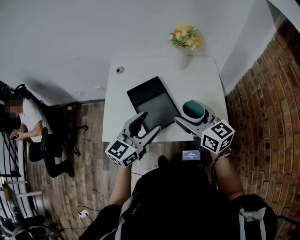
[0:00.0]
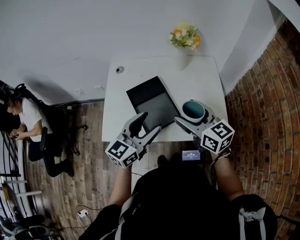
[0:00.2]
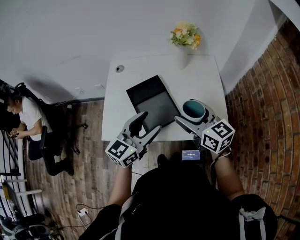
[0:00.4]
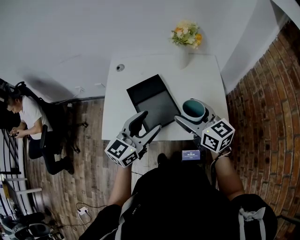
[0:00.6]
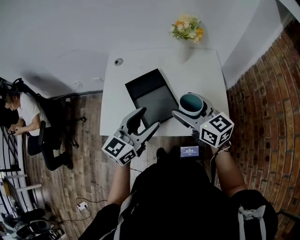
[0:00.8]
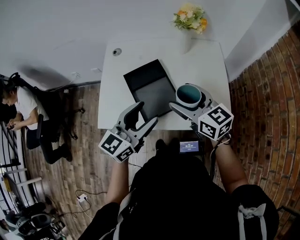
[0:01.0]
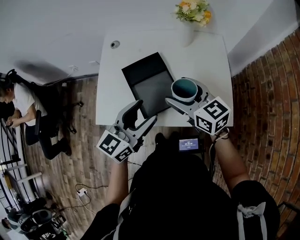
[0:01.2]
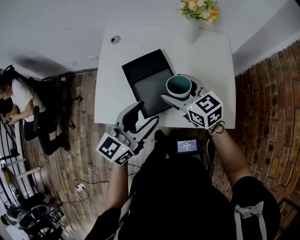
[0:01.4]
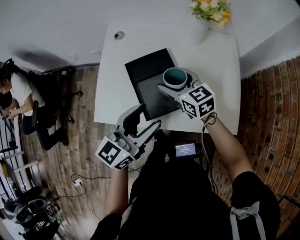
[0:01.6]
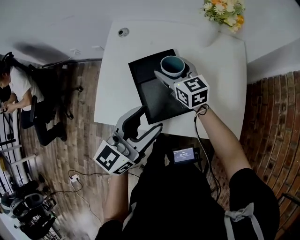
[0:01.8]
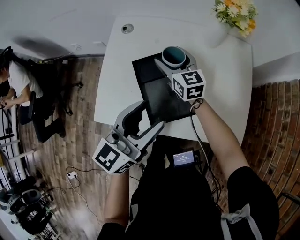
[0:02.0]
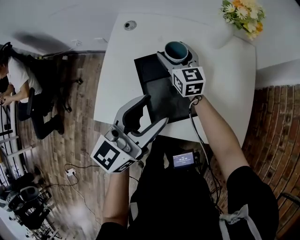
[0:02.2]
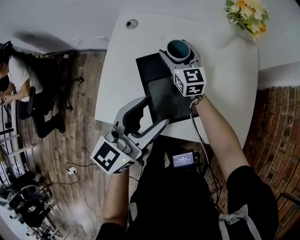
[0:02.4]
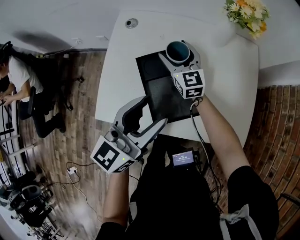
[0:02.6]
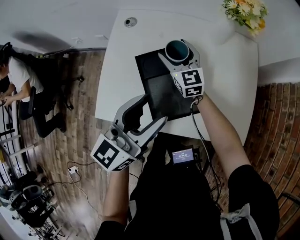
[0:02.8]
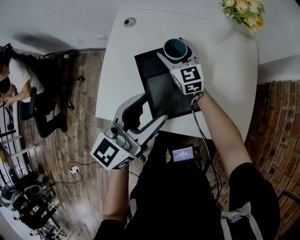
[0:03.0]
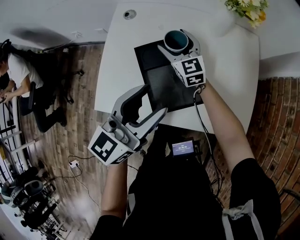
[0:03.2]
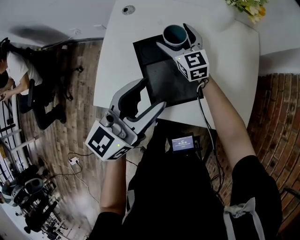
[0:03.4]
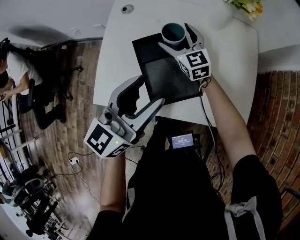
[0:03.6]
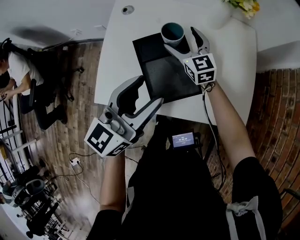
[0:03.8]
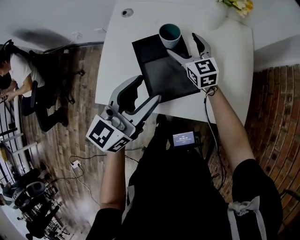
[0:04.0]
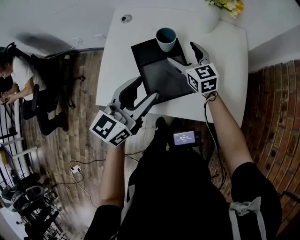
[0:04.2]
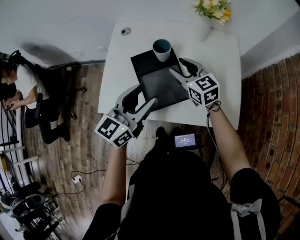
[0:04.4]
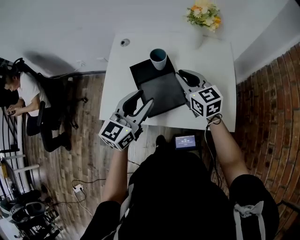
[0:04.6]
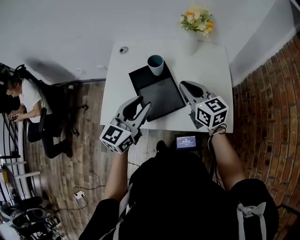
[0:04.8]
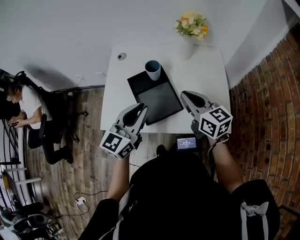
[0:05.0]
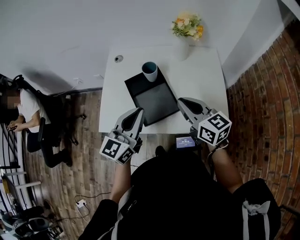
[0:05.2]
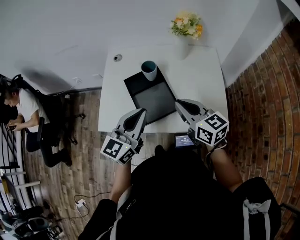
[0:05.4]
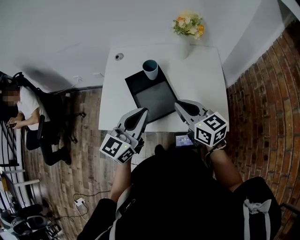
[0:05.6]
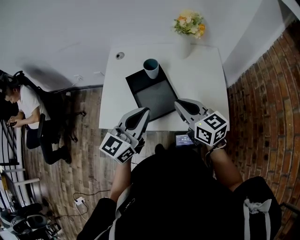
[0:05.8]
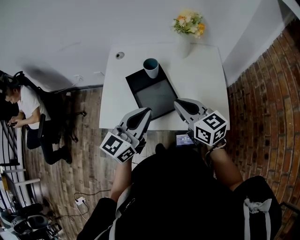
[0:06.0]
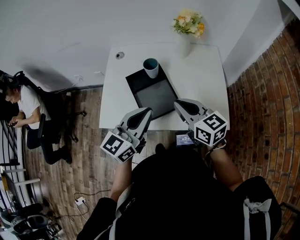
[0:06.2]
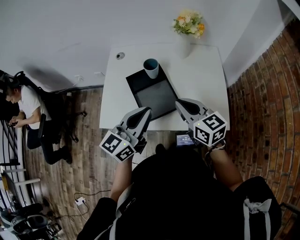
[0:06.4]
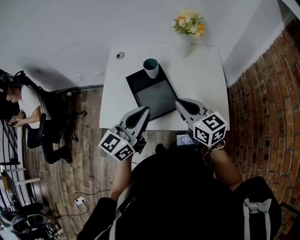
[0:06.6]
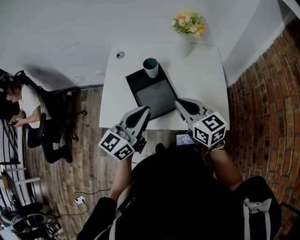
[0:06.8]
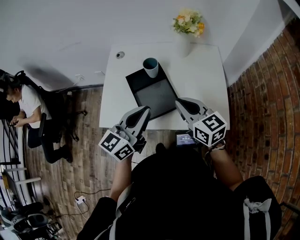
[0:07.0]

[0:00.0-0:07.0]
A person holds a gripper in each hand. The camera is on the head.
0:00.0 to 0:01.4: The right gripper goes some 15 cm downward, forward and to the left.
0:01.4 to 0:02.8: The right gripper moves forward, downward and to the left, some 20 cm, and rotates some 20 degrees. Meanwhile the left gripper moves forward, approximately 5 cm.
0:02.8 to 0:04.2: The right gripper shifts approximately 10 cm backward and to the right.
0:04.2 to 0:05.6: The left gripper is displaced backward by about 5 cm, and closes its fingers, while the right gripper moves backward and upward, about 20 cm, and closes up.
0:05.6 to 0:07.0: The grippers stay close to where they were, moving slightly.

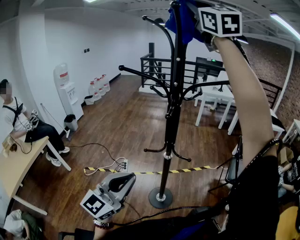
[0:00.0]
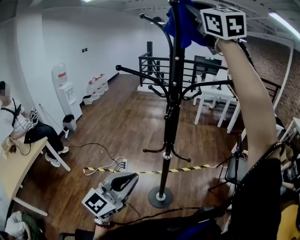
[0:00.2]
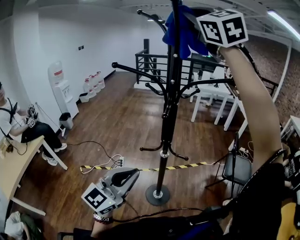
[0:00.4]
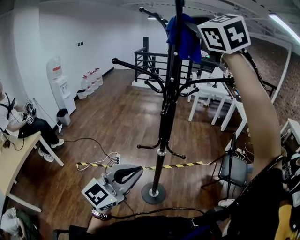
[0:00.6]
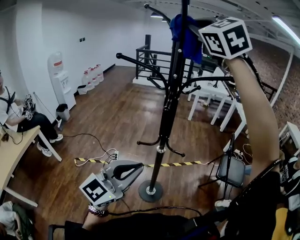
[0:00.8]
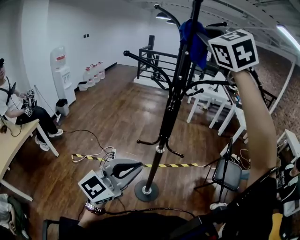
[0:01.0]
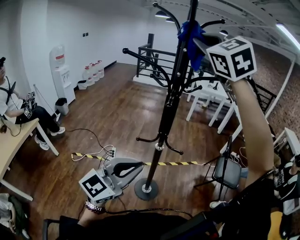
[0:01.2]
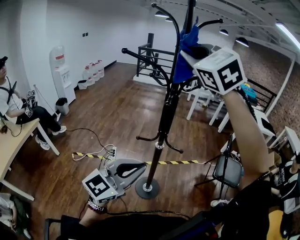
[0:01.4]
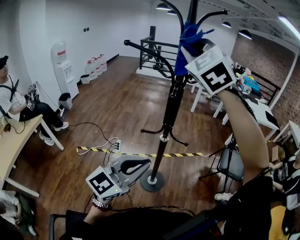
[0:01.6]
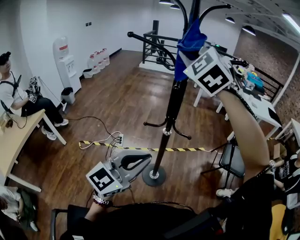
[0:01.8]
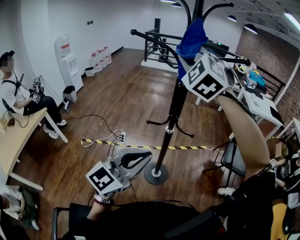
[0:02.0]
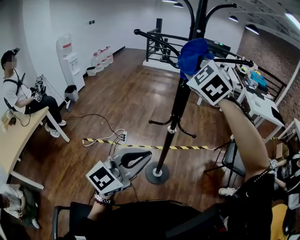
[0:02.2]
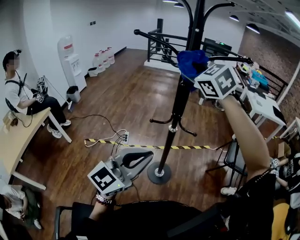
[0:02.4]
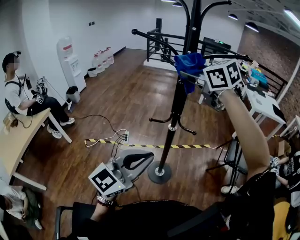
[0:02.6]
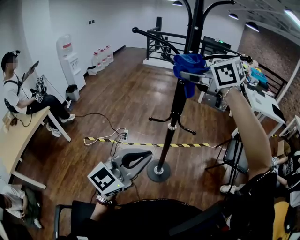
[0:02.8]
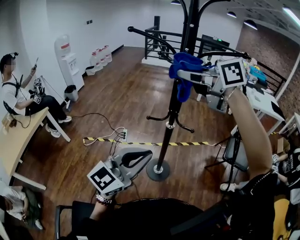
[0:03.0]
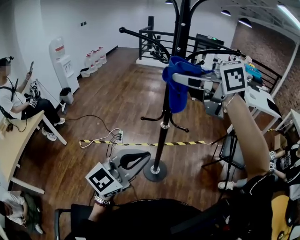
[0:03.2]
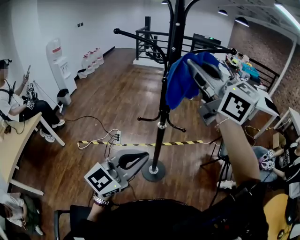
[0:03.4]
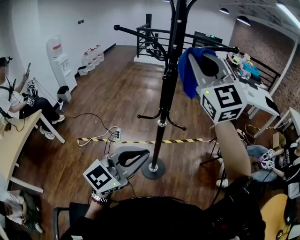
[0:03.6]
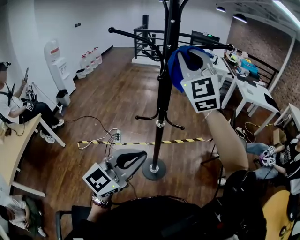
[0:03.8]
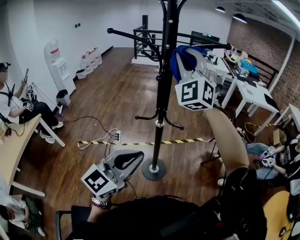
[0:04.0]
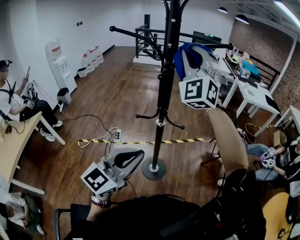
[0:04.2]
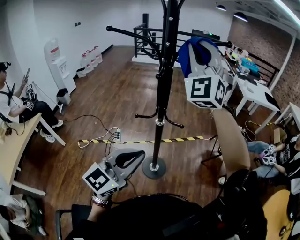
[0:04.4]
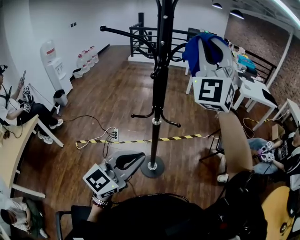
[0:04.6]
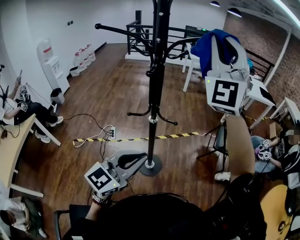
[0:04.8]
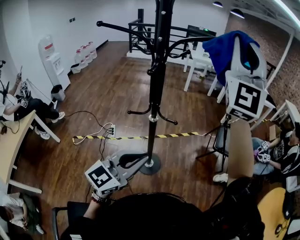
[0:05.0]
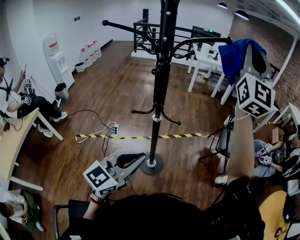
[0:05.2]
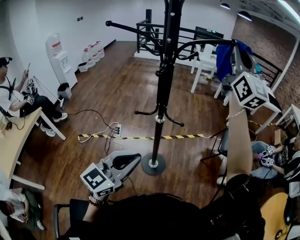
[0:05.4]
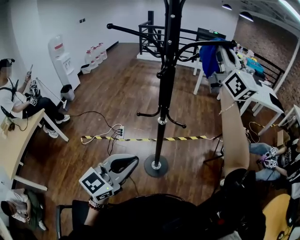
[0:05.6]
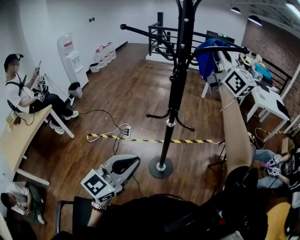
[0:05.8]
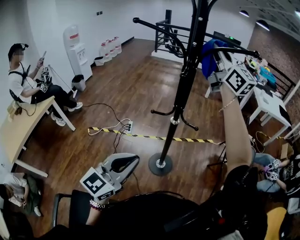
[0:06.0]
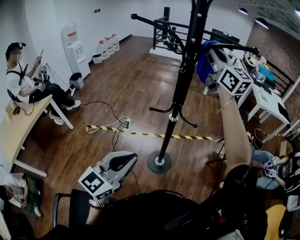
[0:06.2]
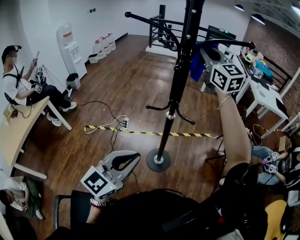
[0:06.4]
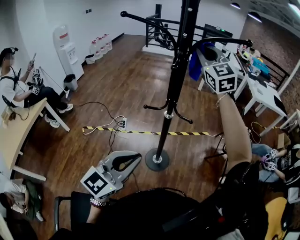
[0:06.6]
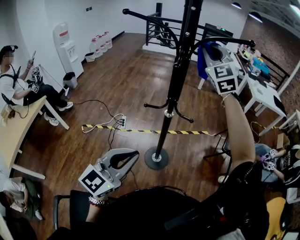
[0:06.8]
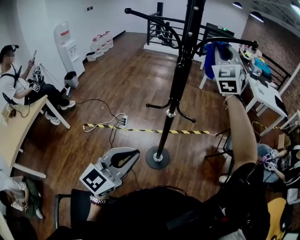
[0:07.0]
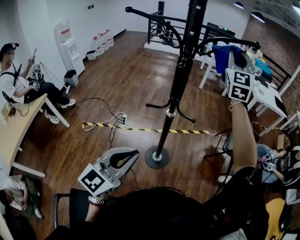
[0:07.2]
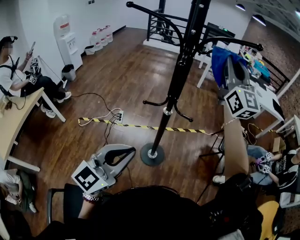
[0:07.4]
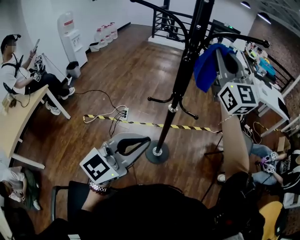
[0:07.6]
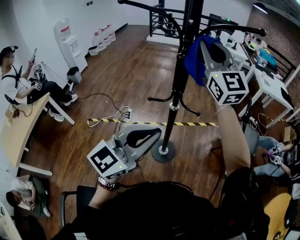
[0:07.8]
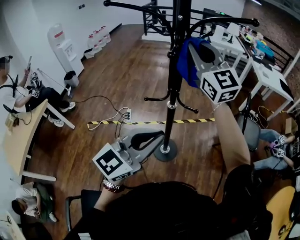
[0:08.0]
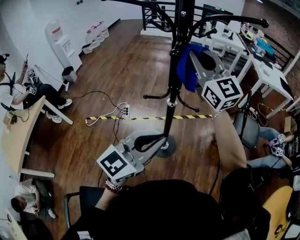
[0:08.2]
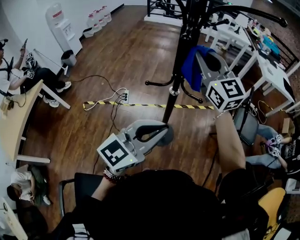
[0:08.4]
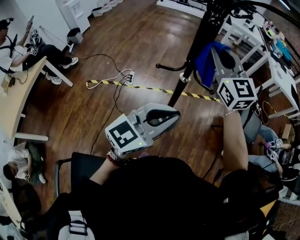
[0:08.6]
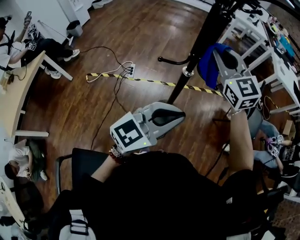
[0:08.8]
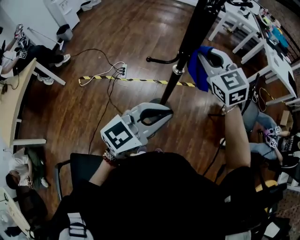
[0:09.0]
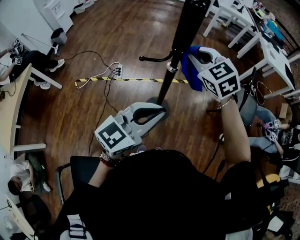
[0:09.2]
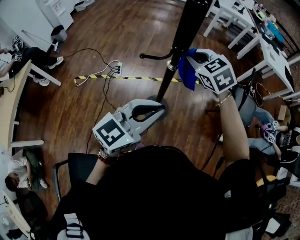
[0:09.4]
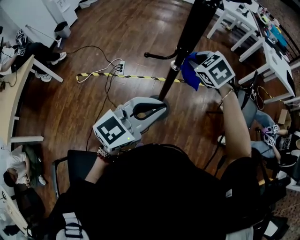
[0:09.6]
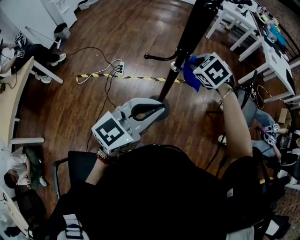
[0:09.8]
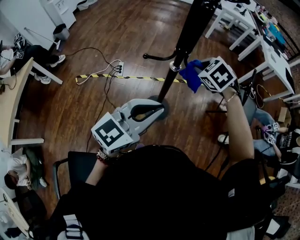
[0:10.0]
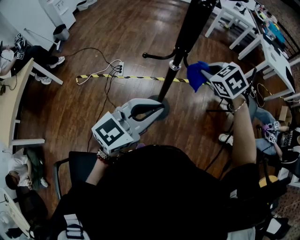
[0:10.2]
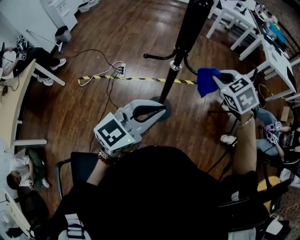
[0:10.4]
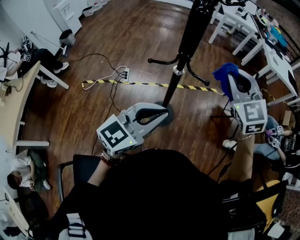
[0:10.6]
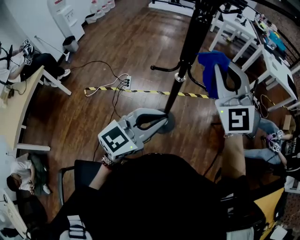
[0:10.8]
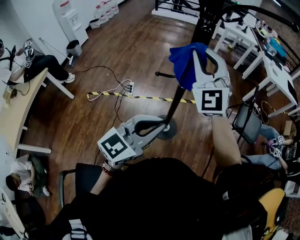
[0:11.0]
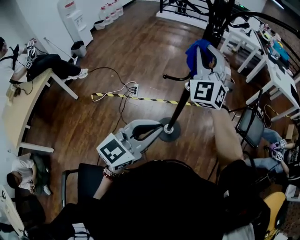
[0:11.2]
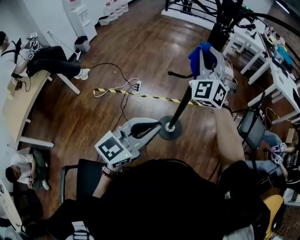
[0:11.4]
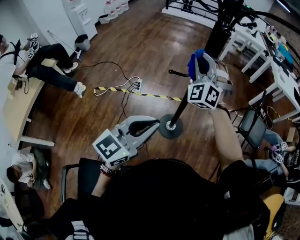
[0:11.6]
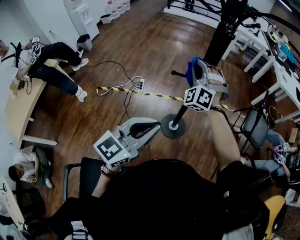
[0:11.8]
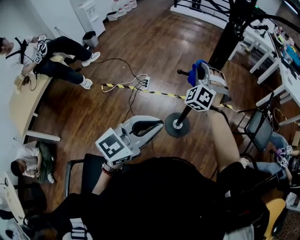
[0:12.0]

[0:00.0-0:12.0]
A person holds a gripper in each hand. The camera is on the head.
0:00.0 to 0:01.6: The right gripper goes roughly 25 cm downward, and changes its angle by some 40 degrees, while the left gripper is displaced to the right by about 5 cm.
0:01.6 to 0:03.0: The right gripper shifts some 10 cm downward, and rotates about 80 degrees.
0:03.0 to 0:04.4: The right gripper changes place by approximately 15 cm, and tips its fingers upward by roughly 40 degrees.
0:04.4 to 0:06.0: The right gripper twists approximately 70 degrees clockwise, seen from behind. The left gripper shifts by approximately 5 cm.
0:06.0 to 0:07.6: The left gripper changes place by about 5 cm. The right gripper moves backward and downward, roughly 10 cm, travels to the right and back again, roughly 10 cm each way, and turns by approximately 20 degrees.
0:07.6 to 0:09.0: The right gripper moves downward, about 25 cm, and tilts its fingers approximately 40 degrees downward, while the left gripper goes some 10 cm downward and forward.
0:09.0 to 0:10.4: The right gripper shifts approximately 15 cm to the right and downward, and points its fingers about 30 degrees further downward.
0:10.4 to 0:12.0: The left gripper heads to the left and backward, covering roughly 10 cm; the right gripper goes some 20 cm to the left, and tilts its fingers about 40 degrees upward.

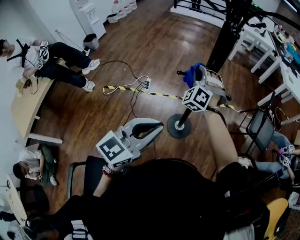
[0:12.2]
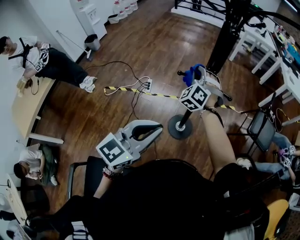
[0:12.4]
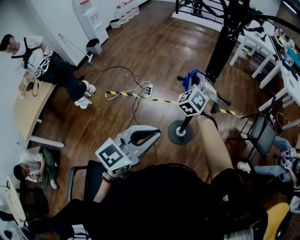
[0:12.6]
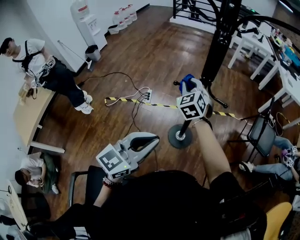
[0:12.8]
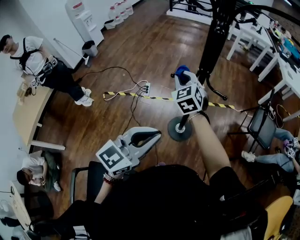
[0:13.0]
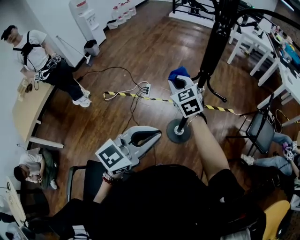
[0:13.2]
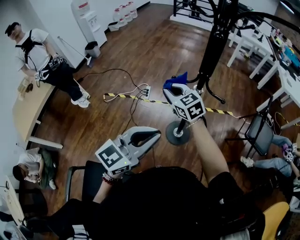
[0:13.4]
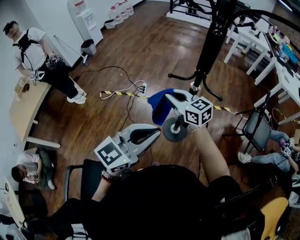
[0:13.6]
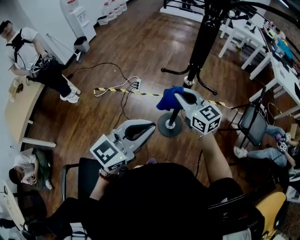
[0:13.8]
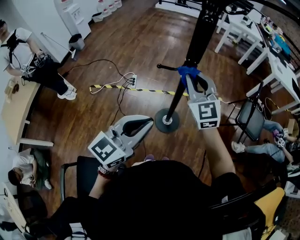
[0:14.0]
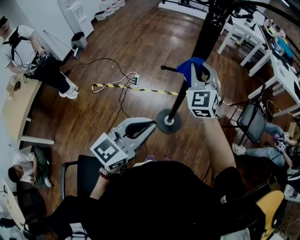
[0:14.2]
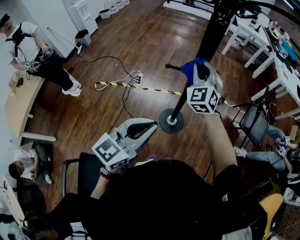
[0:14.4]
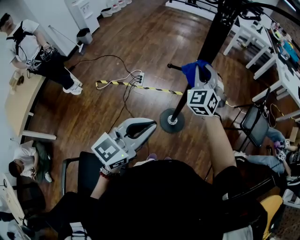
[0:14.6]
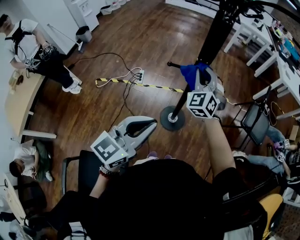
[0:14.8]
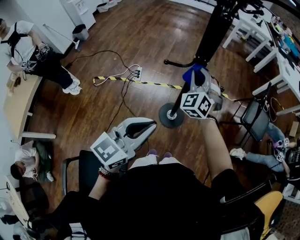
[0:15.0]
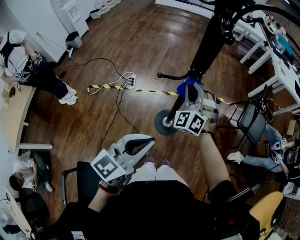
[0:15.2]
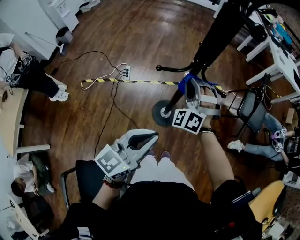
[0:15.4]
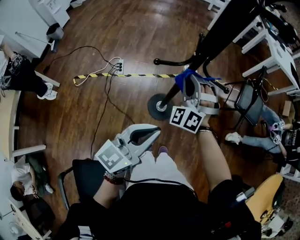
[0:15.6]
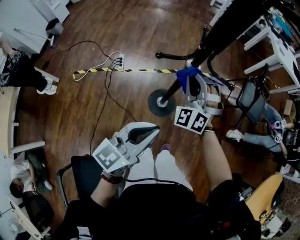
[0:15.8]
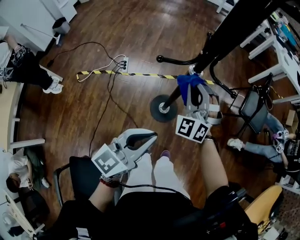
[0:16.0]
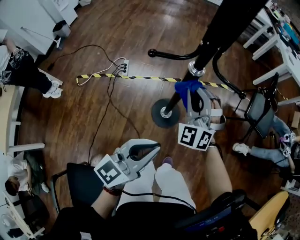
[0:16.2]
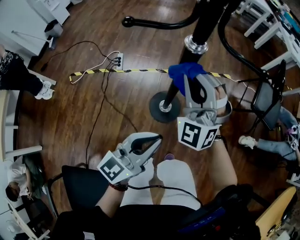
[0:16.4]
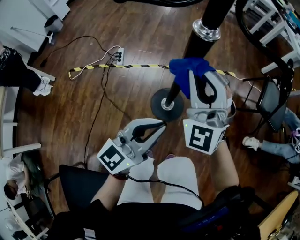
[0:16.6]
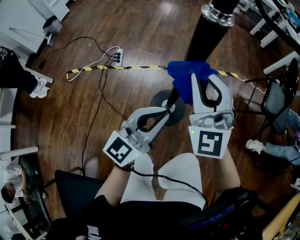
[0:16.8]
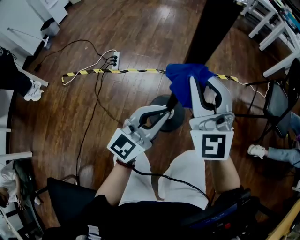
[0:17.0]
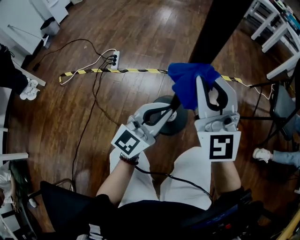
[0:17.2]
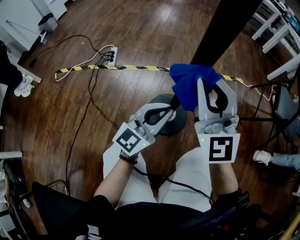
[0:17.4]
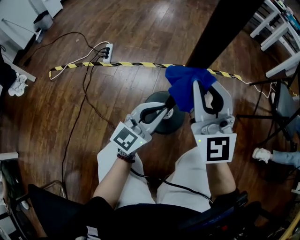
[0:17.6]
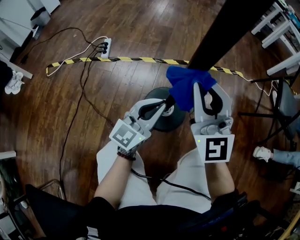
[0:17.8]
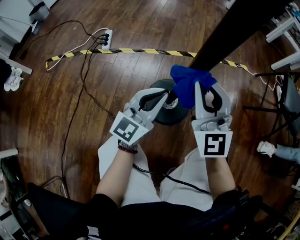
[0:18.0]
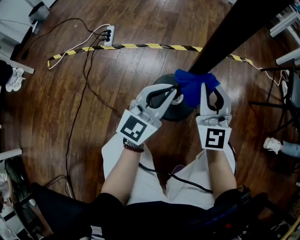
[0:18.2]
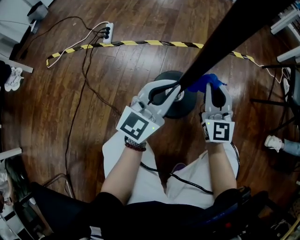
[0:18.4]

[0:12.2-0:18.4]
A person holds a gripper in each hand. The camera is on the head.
0:12.2 to 0:13.8: The right gripper ends up some 15 cm from where it was, and swivels about 80 degrees.
0:13.8 to 0:15.4: The right gripper changes place by approximately 10 cm, and changes its angle by approximately 80 degrees; the left gripper heads downward, covering roughly 5 cm.
0:15.4 to 0:16.8: The left gripper travels downward and forward by approximately 30 cm. Meanwhile the right gripper moves downward, about 15 cm, and changes its angle by about 40 degrees.
0:16.8 to 0:18.4: The grippers both shift downward by about 35 cm. The right gripper rotates approximately 30 degrees.
